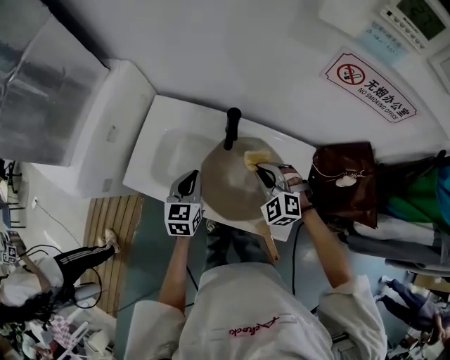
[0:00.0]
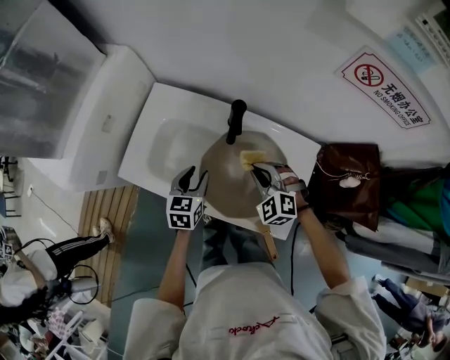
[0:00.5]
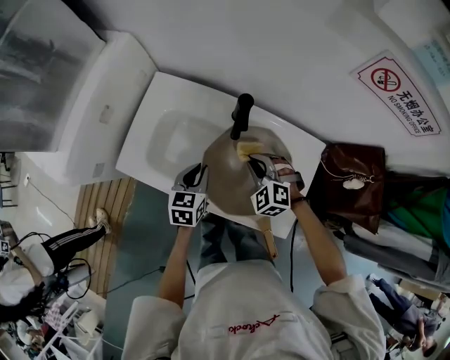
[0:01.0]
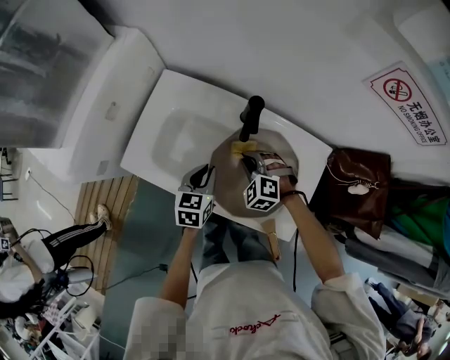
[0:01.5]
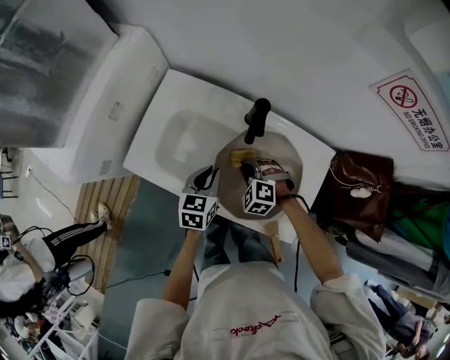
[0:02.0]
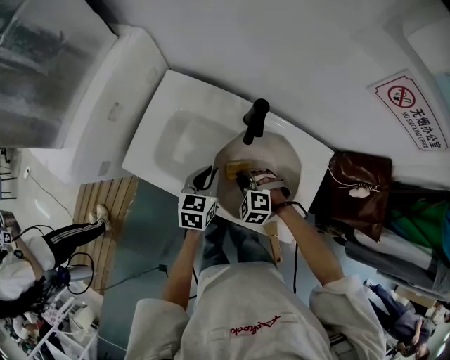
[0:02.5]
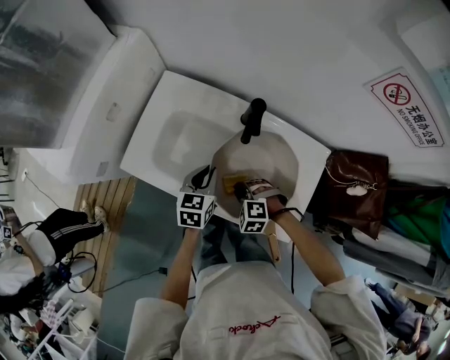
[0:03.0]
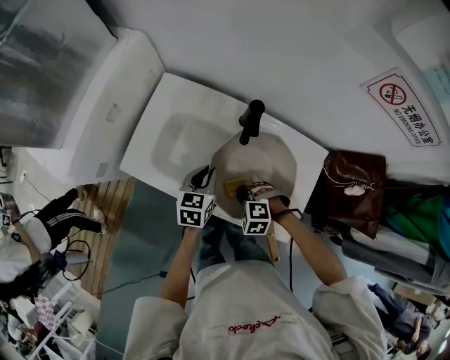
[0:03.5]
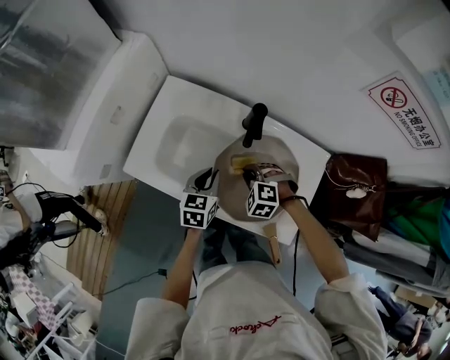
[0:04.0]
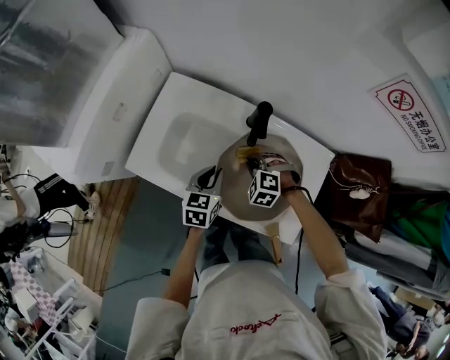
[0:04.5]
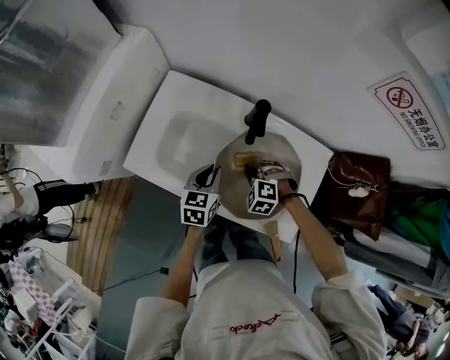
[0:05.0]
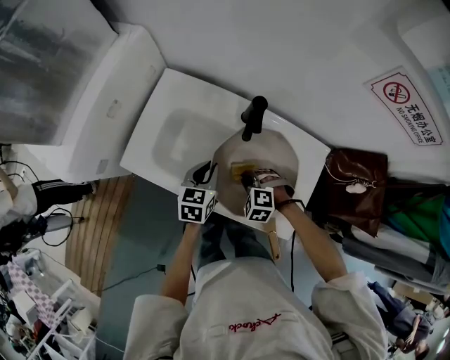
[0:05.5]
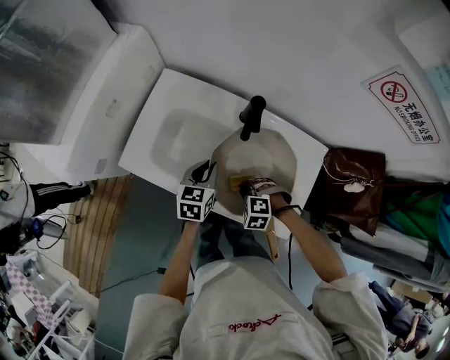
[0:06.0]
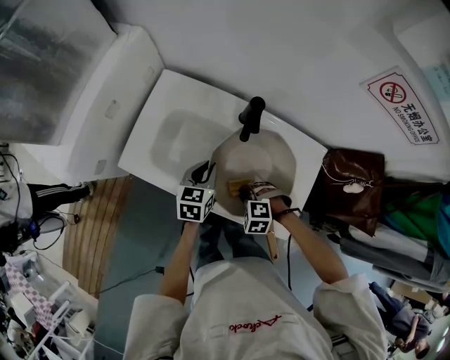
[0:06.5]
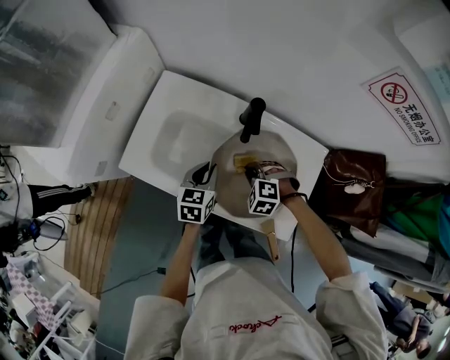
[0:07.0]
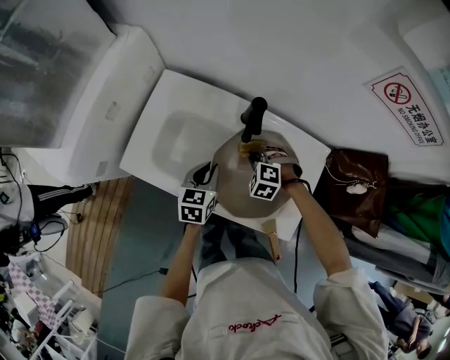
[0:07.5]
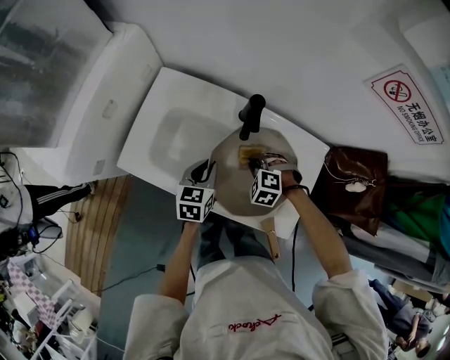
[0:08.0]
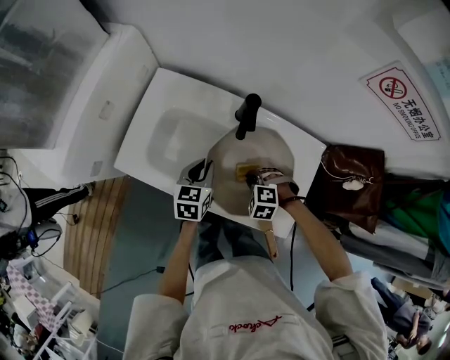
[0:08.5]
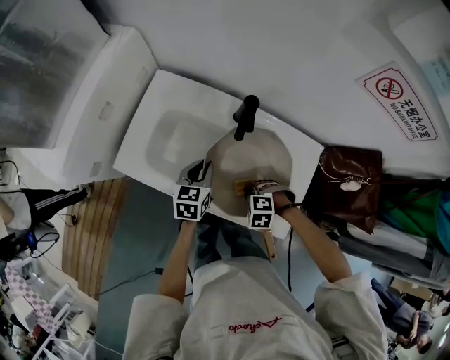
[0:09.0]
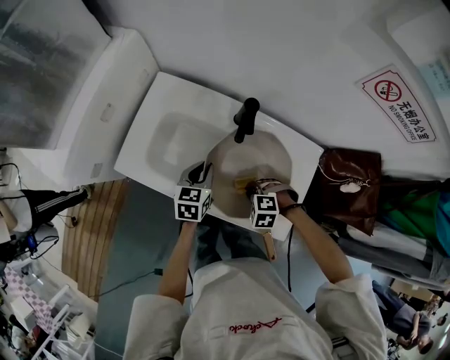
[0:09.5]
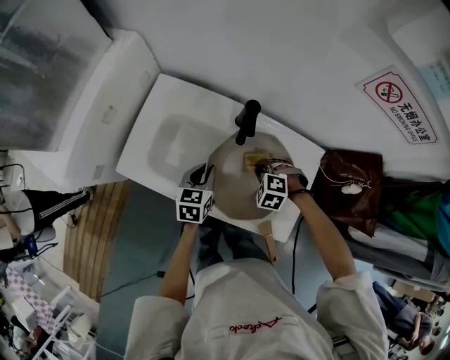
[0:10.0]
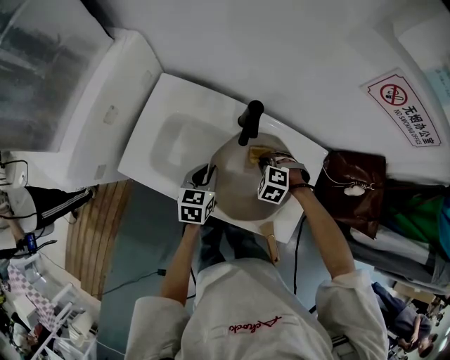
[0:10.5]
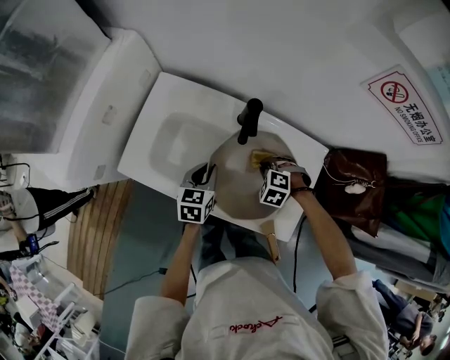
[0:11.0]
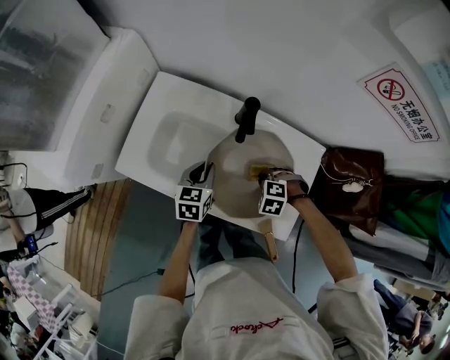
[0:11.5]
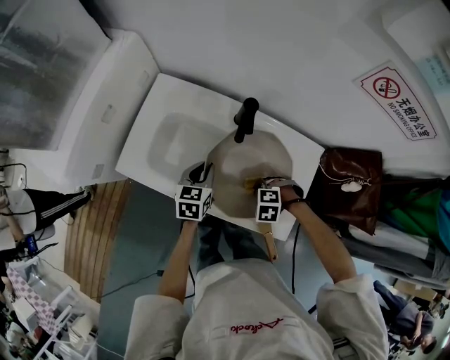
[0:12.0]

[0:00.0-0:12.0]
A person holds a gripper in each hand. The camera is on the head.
0:00.0 to 0:02.0: The right gripper heads downward and to the left, covering some 15 cm, and changes its angle by approximately 20 degrees. Meanwhile the left gripper shifts roughly 5 cm downward, and opens and closes again.
0:02.0 to 0:04.0: The right gripper moves some 10 cm backward and comes back.
0:04.0 to 0:06.0: The right gripper ends up about 10 cm from where it was.
0:06.0 to 0:08.0: The right gripper shifts by approximately 10 cm.
0:10.0 to 0:12.0: The right gripper moves about 10 cm.

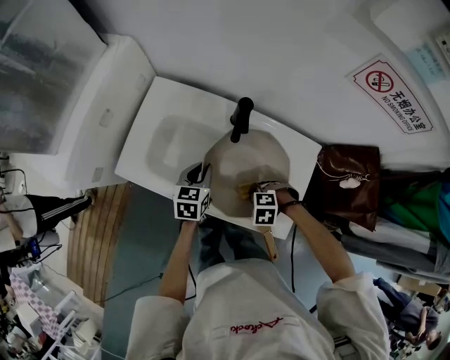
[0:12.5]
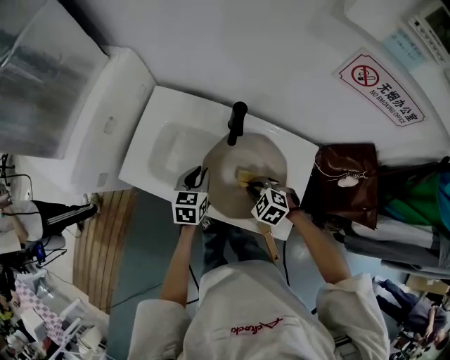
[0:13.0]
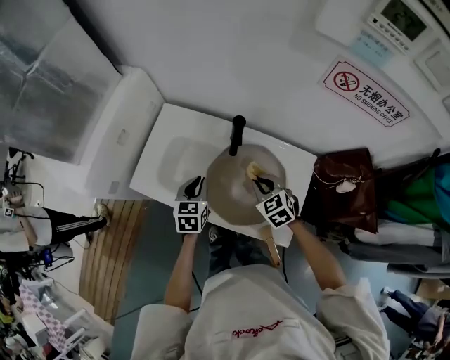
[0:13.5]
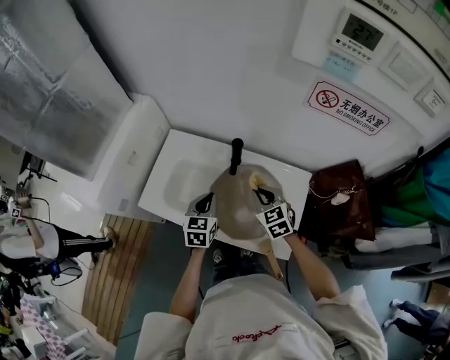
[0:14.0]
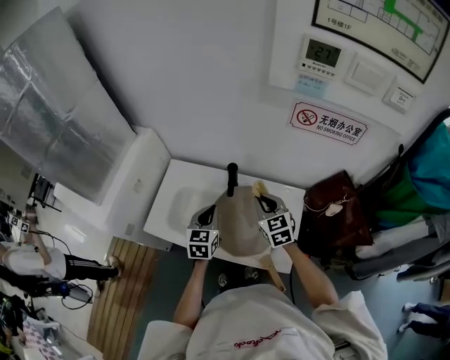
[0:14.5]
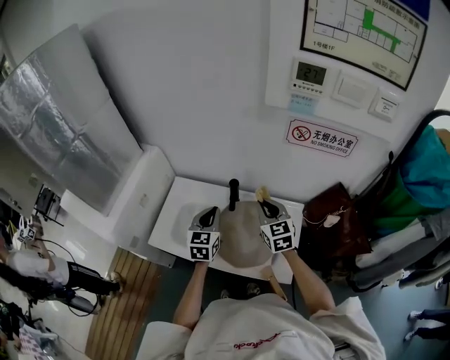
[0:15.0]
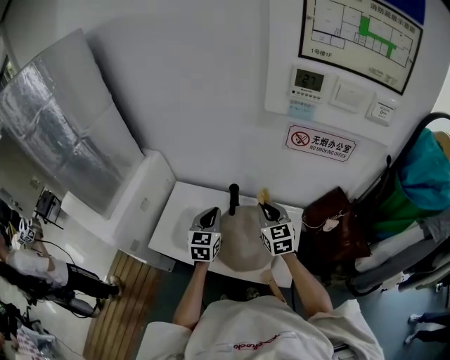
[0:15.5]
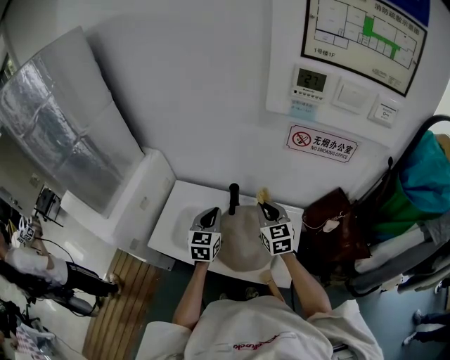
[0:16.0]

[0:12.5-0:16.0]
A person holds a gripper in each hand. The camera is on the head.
0:12.5 to 0:14.5: The left gripper moves upward, some 15 cm, while the right gripper moves upward, approximately 25 cm, and tips its fingers upward by roughly 60 degrees.
0:14.5 to 0:16.0: The grippers both shift upward by roughly 5 cm.

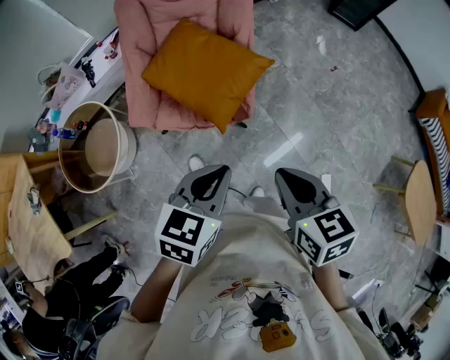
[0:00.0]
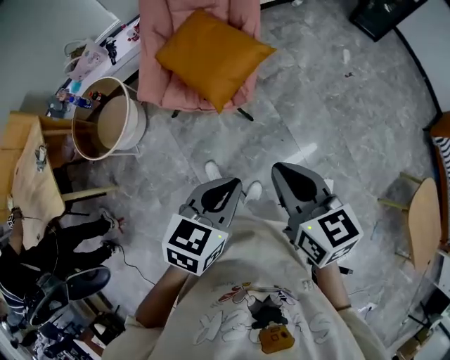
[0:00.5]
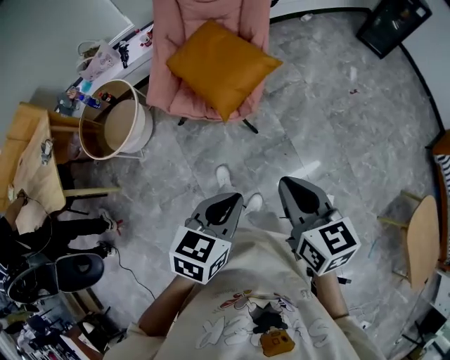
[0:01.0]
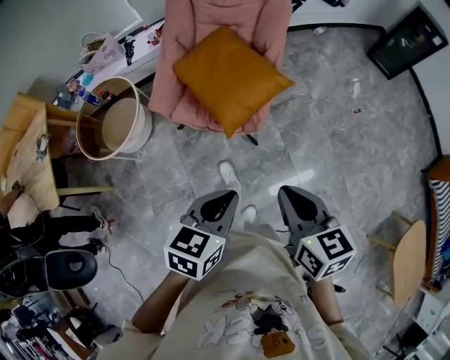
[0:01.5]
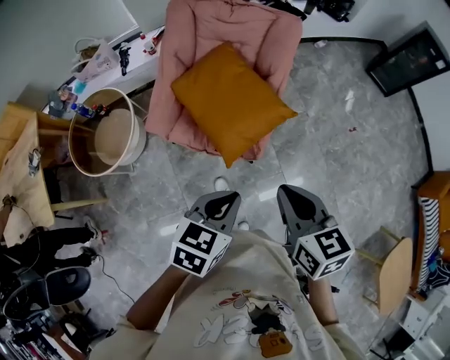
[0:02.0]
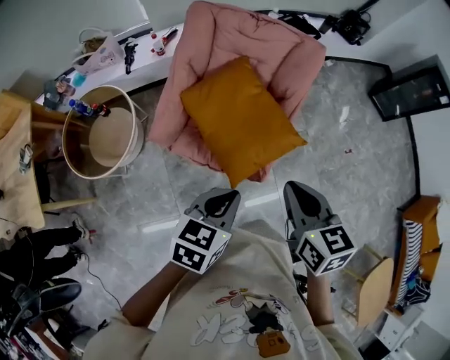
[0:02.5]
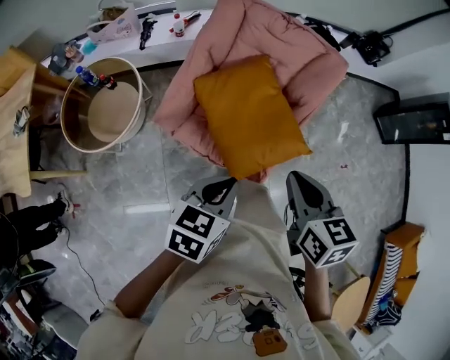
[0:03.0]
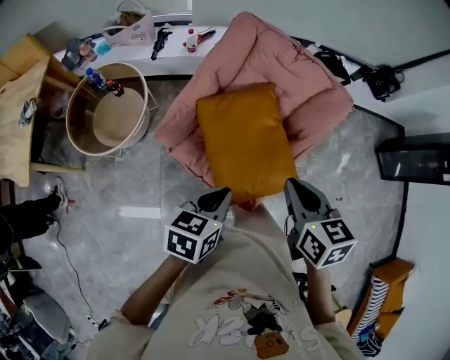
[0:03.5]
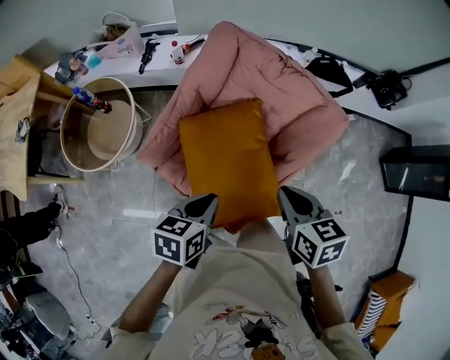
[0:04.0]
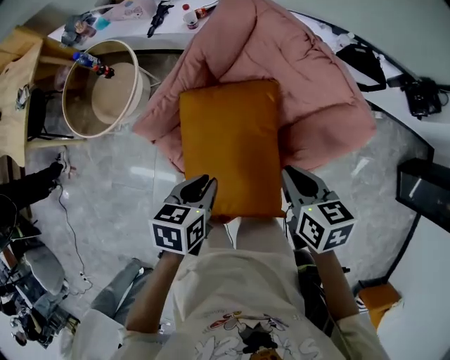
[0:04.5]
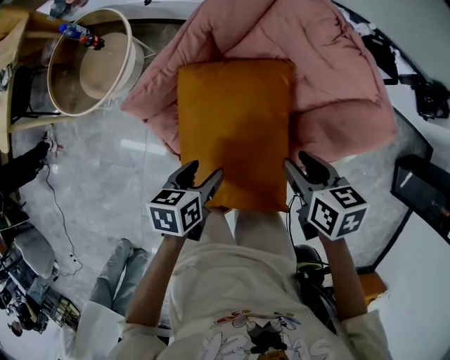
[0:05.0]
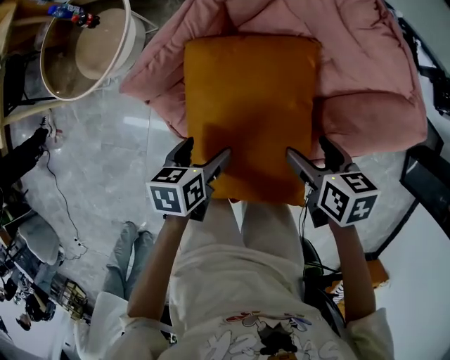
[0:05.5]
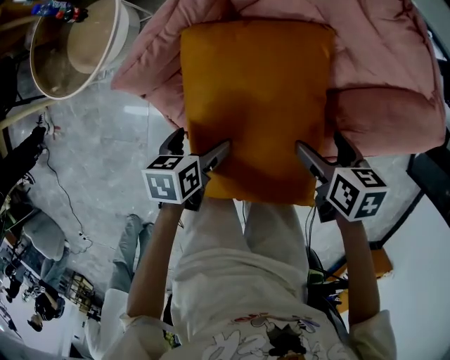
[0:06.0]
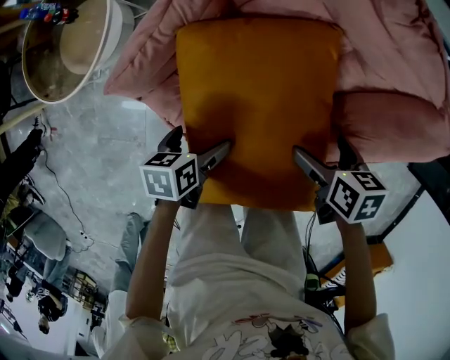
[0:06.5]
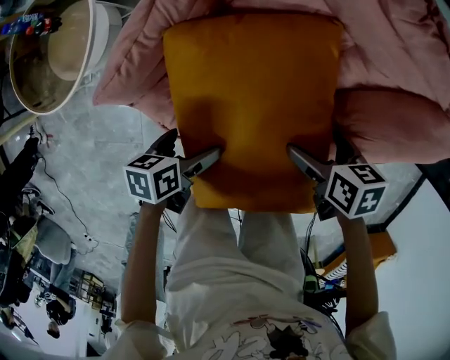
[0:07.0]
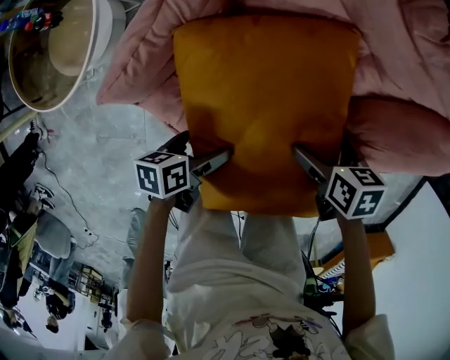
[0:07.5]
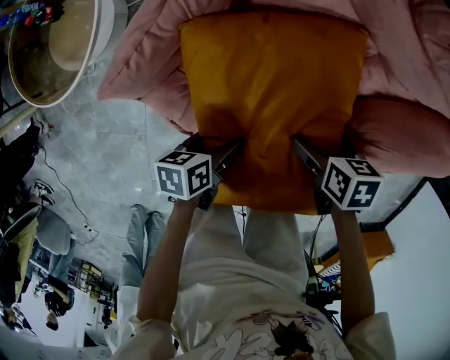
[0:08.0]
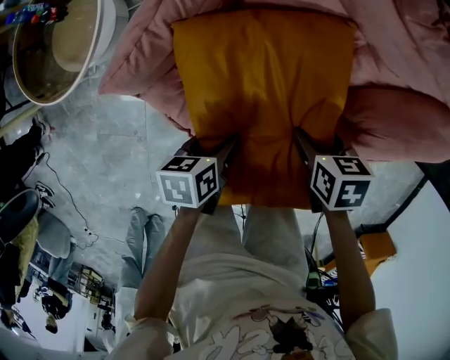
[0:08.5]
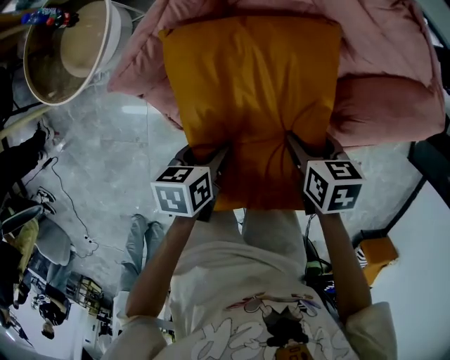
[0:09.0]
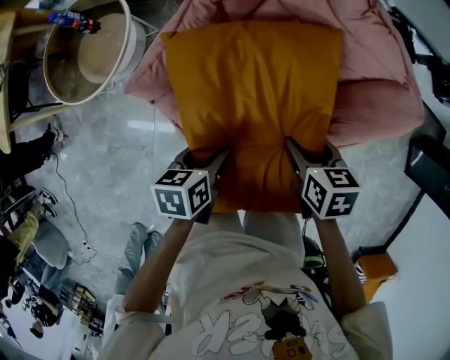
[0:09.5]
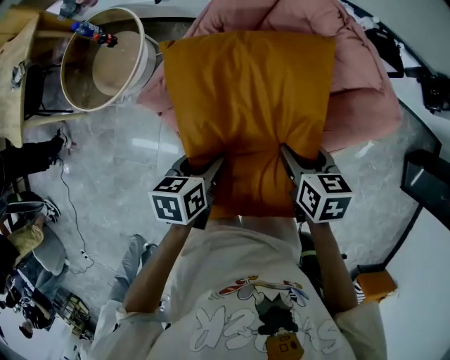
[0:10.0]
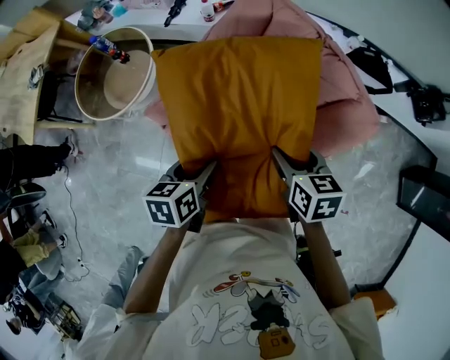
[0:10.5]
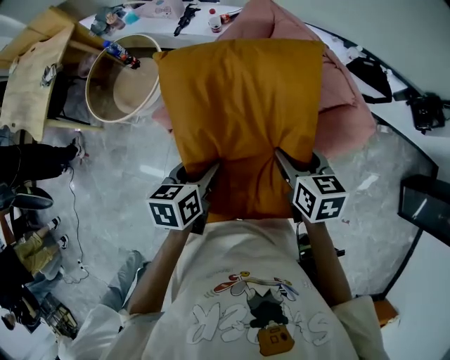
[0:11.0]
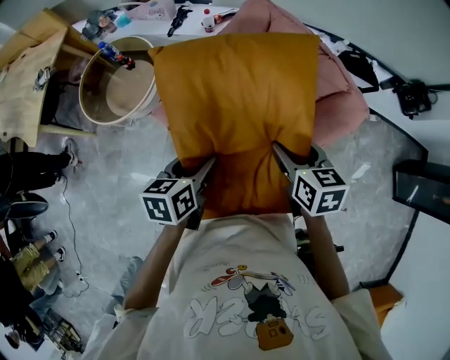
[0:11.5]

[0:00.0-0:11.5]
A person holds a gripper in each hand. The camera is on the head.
0:00.0 to 0:02.0: The left gripper travels backward and back again, some 15 cm each way. Meanwhile the right gripper is displaced forward by about 10 cm.
0:02.0 to 0:04.0: Both grippers travel together forward, approximately 35 cm. The left gripper swivels roughly 40 degrees. Meanwhile the right gripper changes its angle by about 20 degrees.
0:04.0 to 0:06.0: Both grippers move downward, approximately 30 cm. The left gripper swivels roughly 30 degrees, and opens up. Meanwhile the right gripper turns by roughly 20 degrees, and opens its fingers.
0:06.0 to 0:07.5: The grippers both shift downward by some 10 cm.
0:07.5 to 0:09.5: Both grippers move upward, roughly 15 cm. The right gripper closes its fingers; the left gripper turns by some 20 degrees, and closes its fingers.
0:09.5 to 0:11.5: Both grippers travel together upward, approximately 20 cm. The right gripper turns by some 20 degrees.
